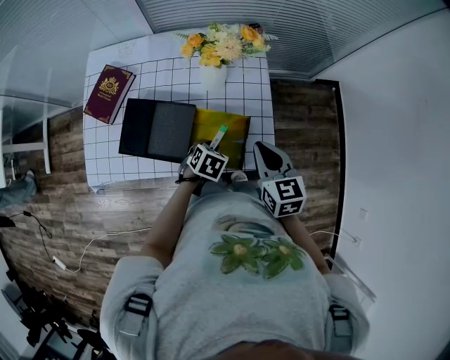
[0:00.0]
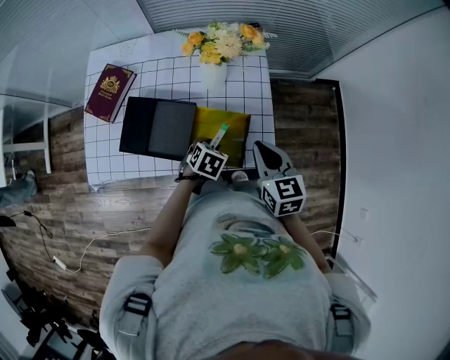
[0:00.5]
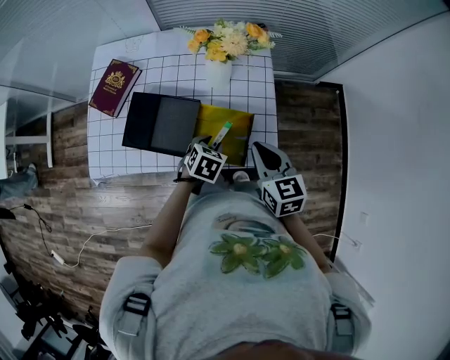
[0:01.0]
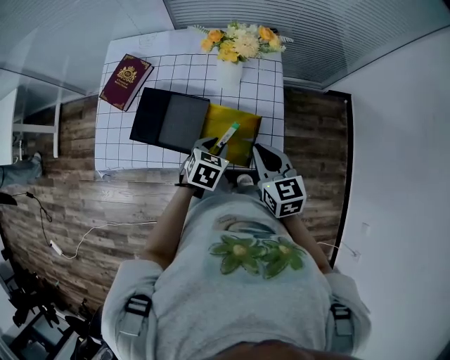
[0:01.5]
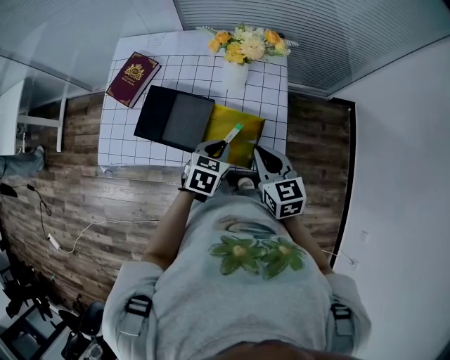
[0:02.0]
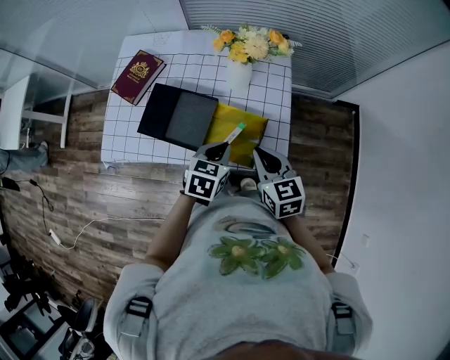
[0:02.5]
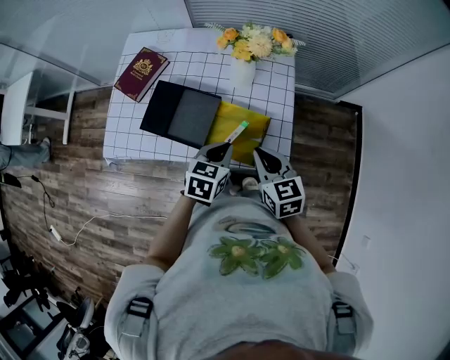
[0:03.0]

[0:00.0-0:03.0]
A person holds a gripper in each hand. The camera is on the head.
0:00.0 to 0:01.5: The left gripper is displaced upward by some 5 cm.
0:01.5 to 0:03.0: The left gripper travels upward by some 5 cm, and closes.

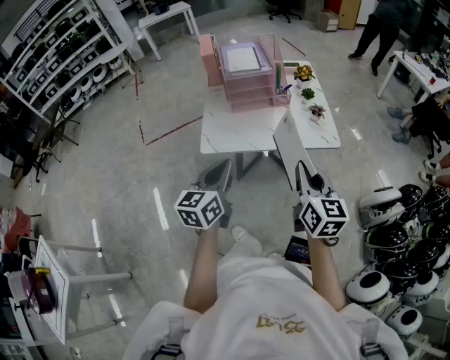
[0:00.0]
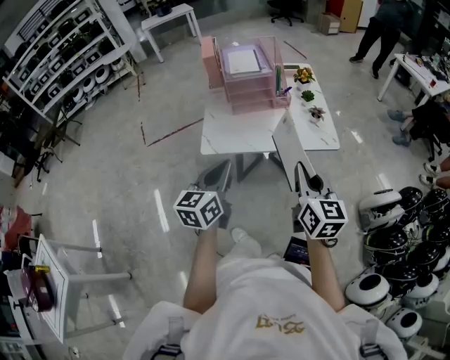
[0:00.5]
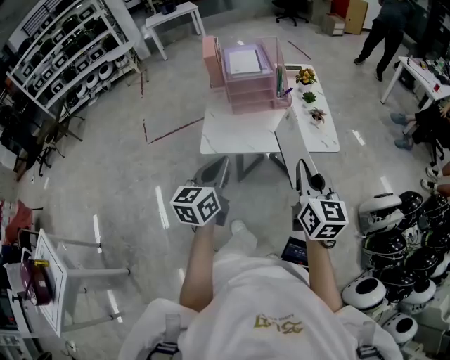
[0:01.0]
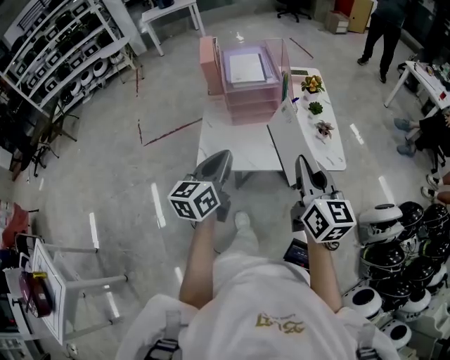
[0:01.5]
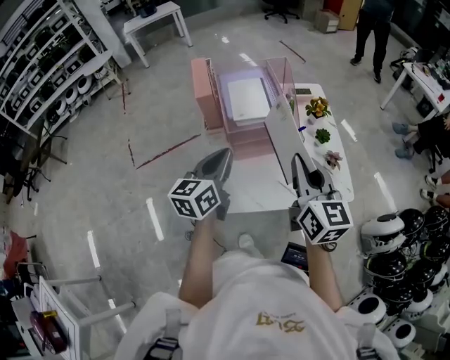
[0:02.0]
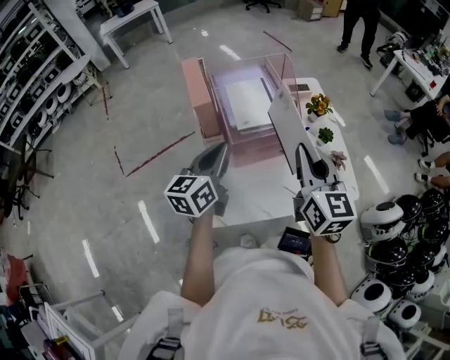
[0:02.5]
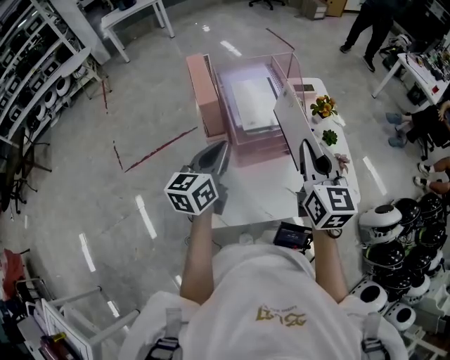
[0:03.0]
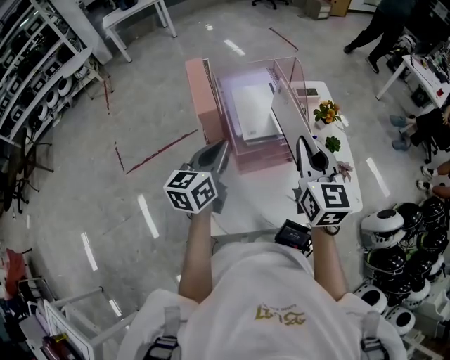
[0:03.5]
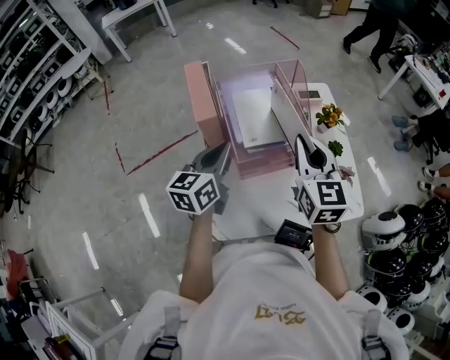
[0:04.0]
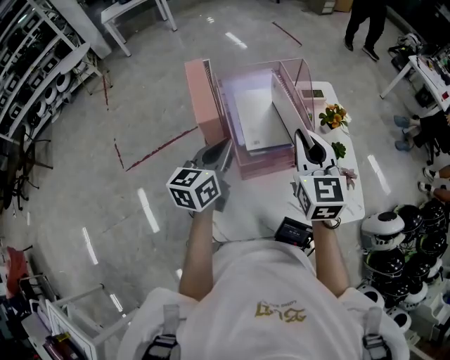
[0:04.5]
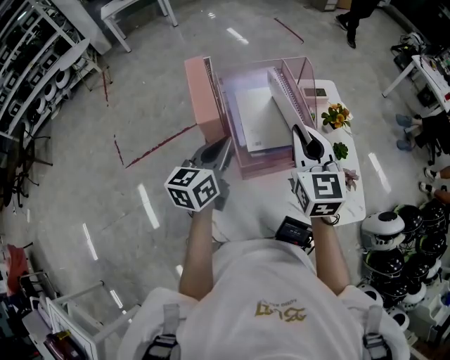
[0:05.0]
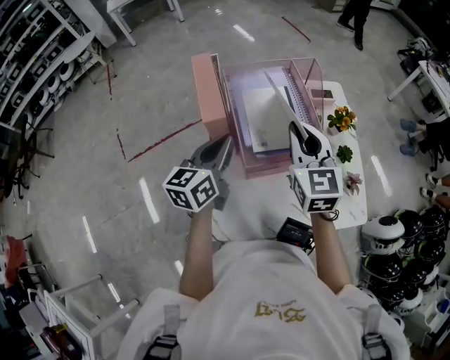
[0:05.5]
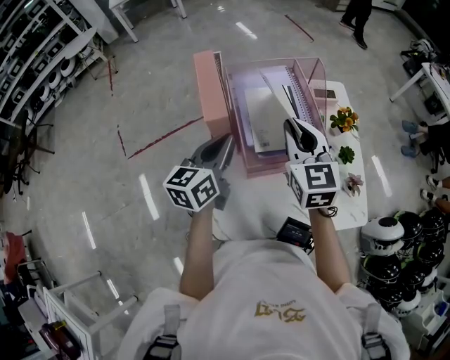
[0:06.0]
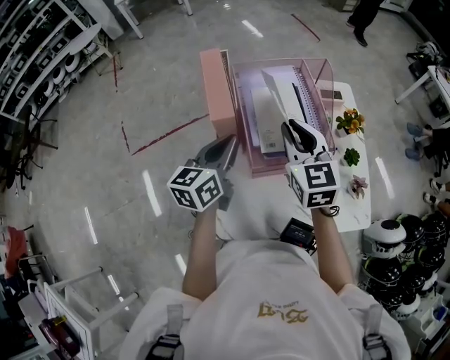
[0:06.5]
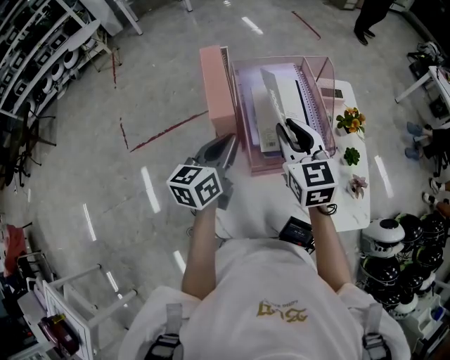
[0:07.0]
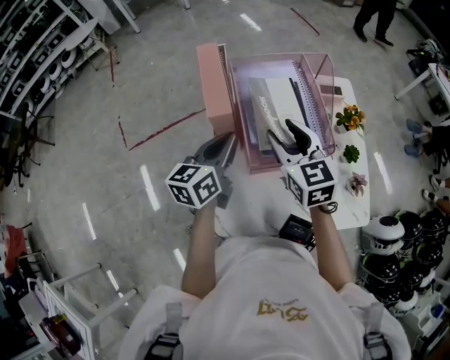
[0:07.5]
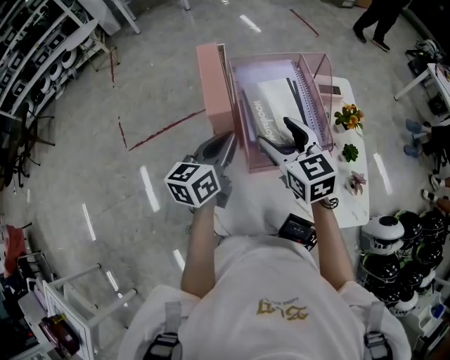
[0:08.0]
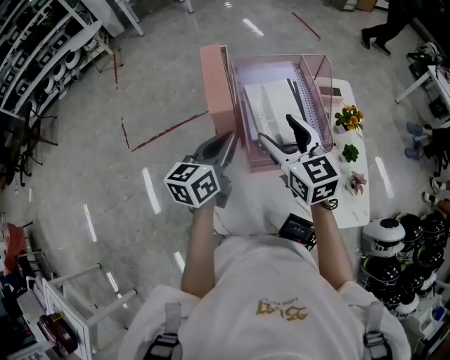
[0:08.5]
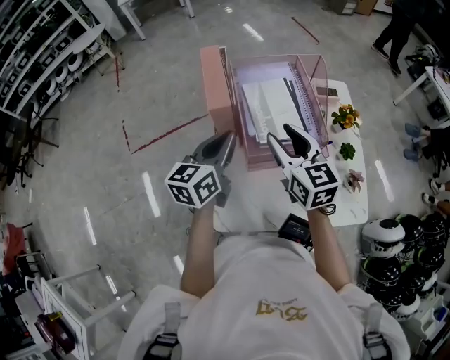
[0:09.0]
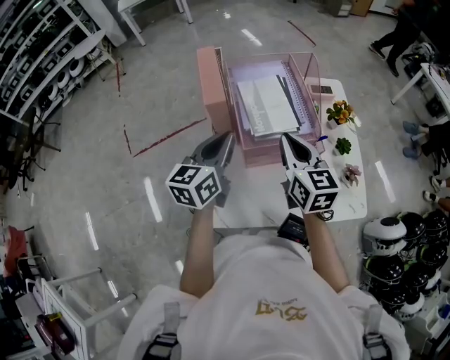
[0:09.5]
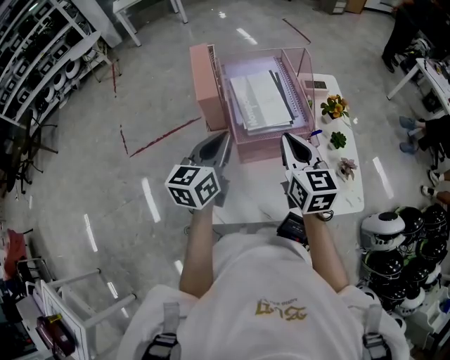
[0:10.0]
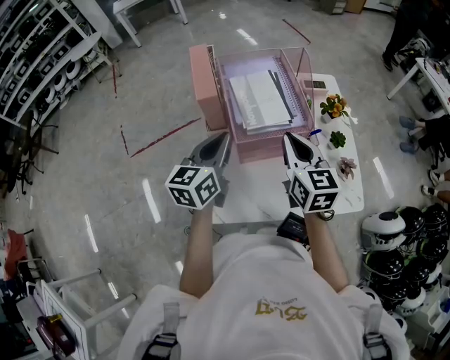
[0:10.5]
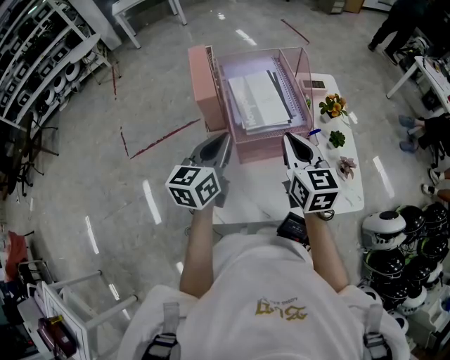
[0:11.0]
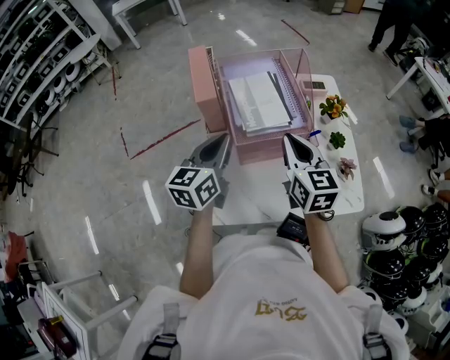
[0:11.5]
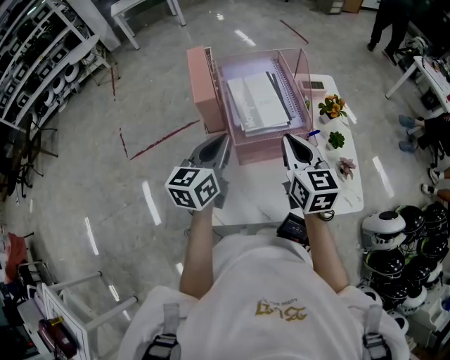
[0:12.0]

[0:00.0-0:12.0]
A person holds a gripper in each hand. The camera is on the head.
0:00.0 to 0:02.0: The two grippers go roughly 30 cm forward.
0:02.0 to 0:04.0: The left gripper heads forward and to the left, covering approximately 15 cm. The right gripper heads forward, covering approximately 15 cm.
0:04.0 to 0:06.0: The right gripper moves to the left and forward, some 10 cm.
0:06.0 to 0:08.0: The right gripper shifts by about 5 cm, and opens.
0:08.0 to 0:10.0: The left gripper shifts some 5 cm backward, while the right gripper shifts about 10 cm backward and to the right, and closes its fingers.
0:10.0 to 0:12.0: Both grippers stay put.

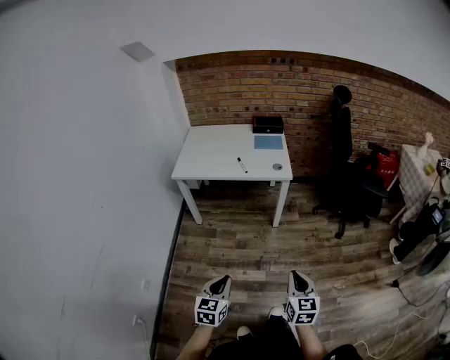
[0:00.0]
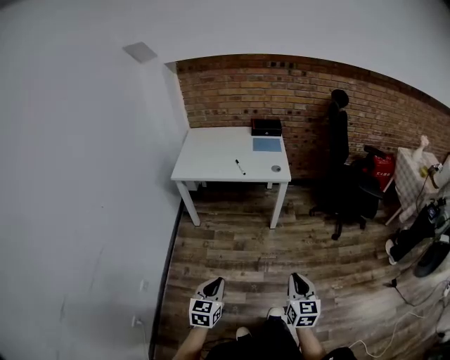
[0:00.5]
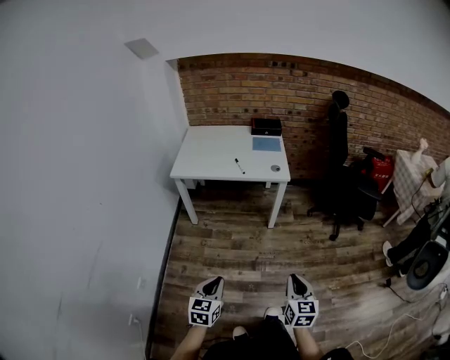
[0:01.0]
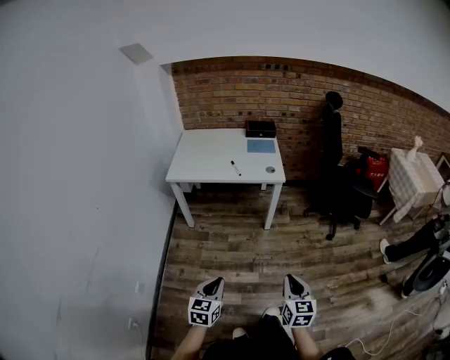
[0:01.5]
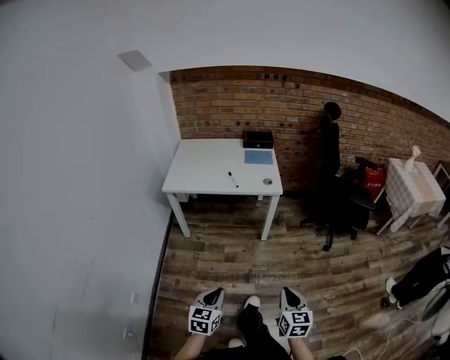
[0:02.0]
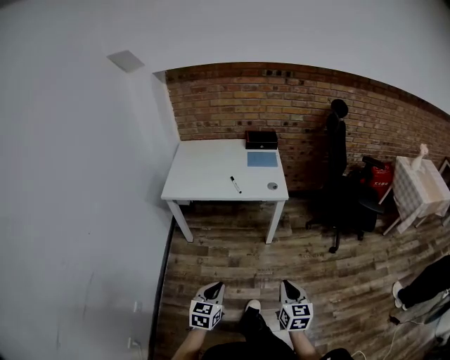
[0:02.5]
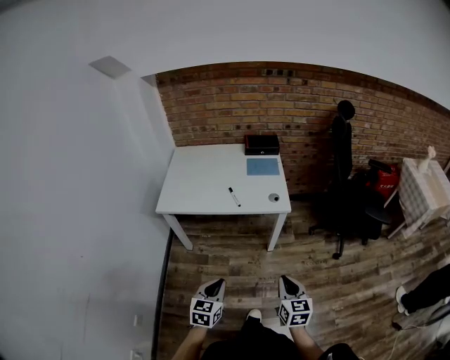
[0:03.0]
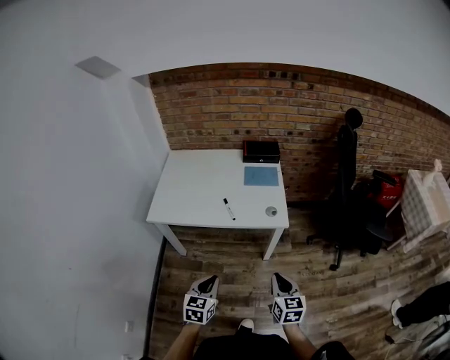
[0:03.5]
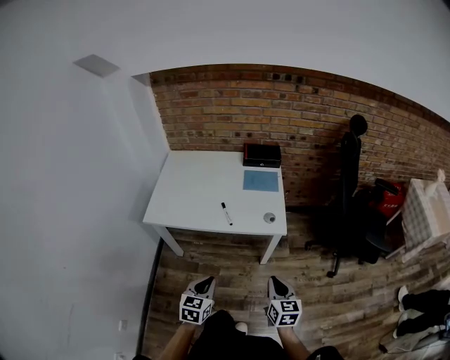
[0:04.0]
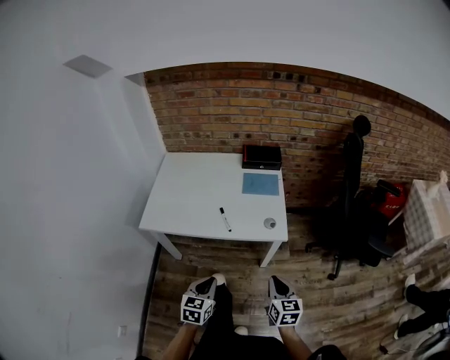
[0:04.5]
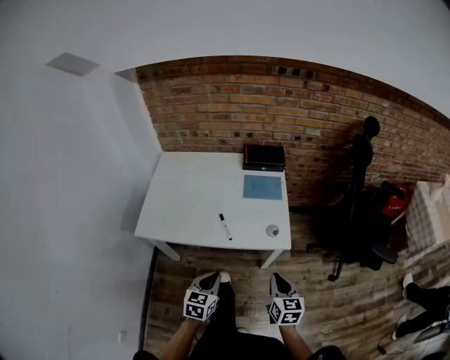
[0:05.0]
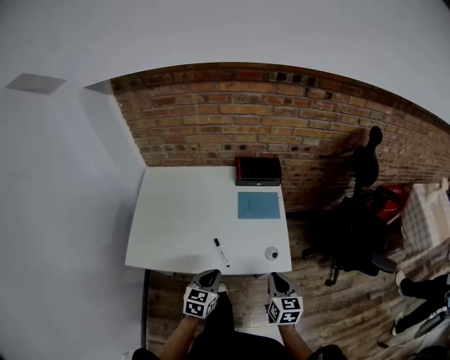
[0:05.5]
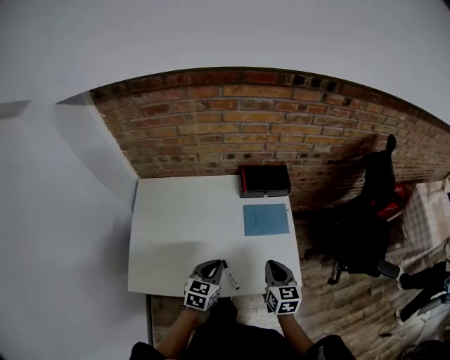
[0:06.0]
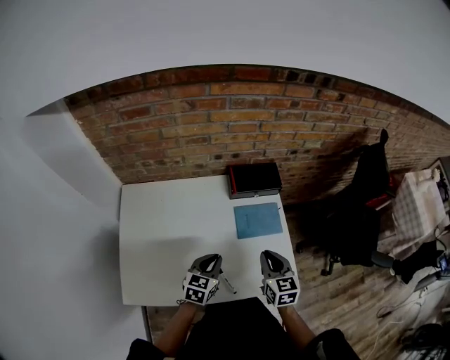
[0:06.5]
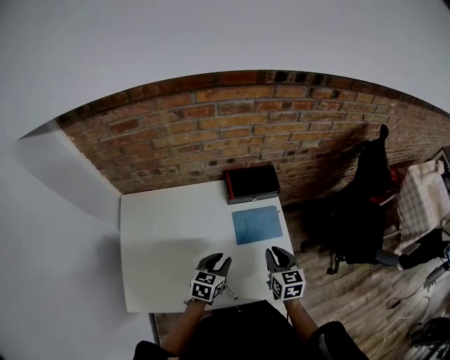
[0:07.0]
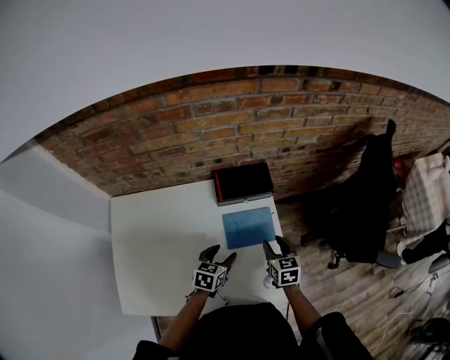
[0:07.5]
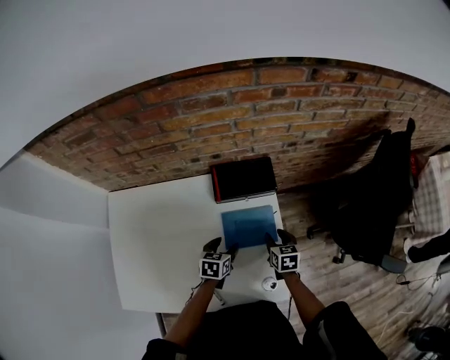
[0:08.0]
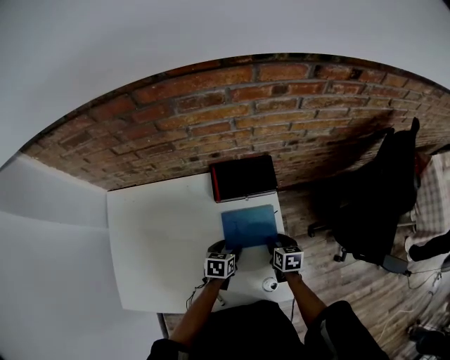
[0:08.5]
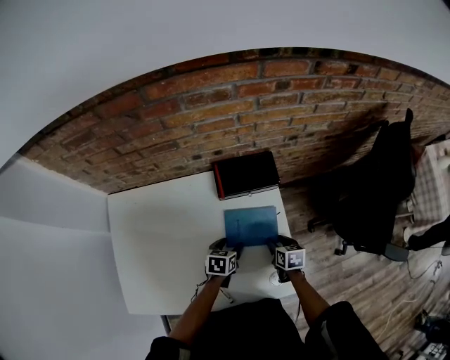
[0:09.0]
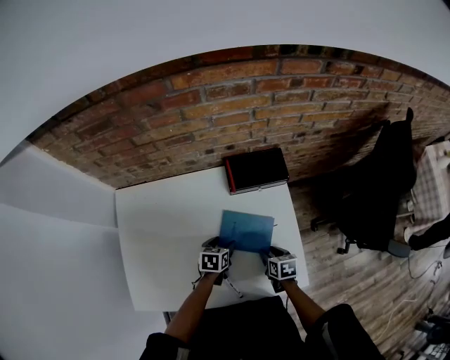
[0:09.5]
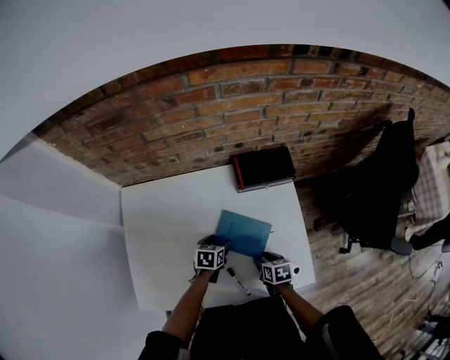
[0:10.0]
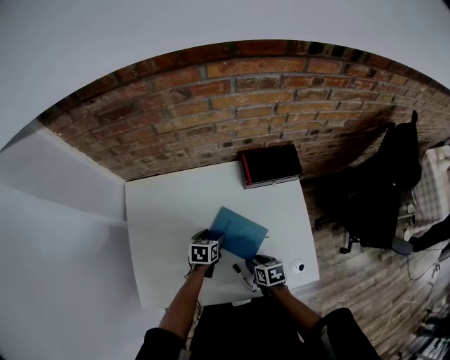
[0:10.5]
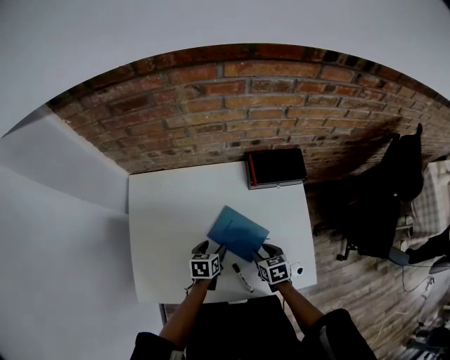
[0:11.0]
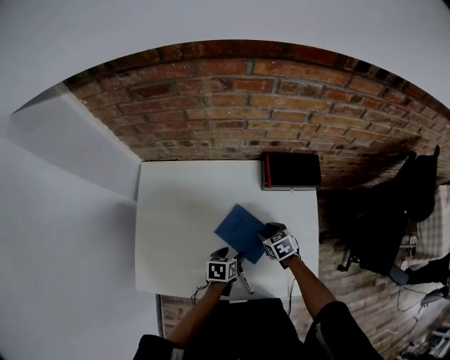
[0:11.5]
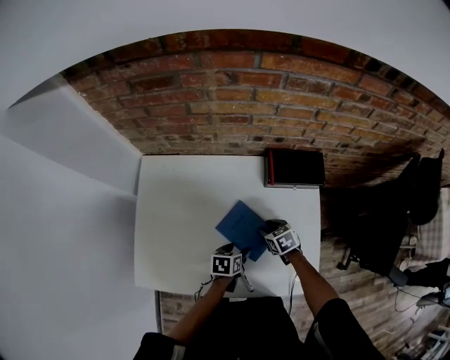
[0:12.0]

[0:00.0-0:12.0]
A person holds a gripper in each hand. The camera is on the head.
0:00.0 to 0:02.0: The grippers move only a little.
0:02.0 to 0:04.0: Both grippers travel together forward, approximately 40 cm.
0:04.0 to 0:06.0: Both grippers are carried forward, some 40 cm.
0:06.0 to 0:08.0: The left gripper goes some 25 cm forward, downward and to the right, swivels some 20 degrees, and opens its fingers. Meanwhile the right gripper shifts some 25 cm forward and downward, rotates about 20 degrees, and opens.
0:08.0 to 0:10.0: The right gripper moves backward and to the left, some 20 cm. Meanwhile the left gripper shifts some 15 cm to the left.
0:10.0 to 0:12.0: The right gripper moves forward, roughly 10 cm, and rotates roughly 30 degrees. Meanwhile the left gripper heads backward, covering about 5 cm.
